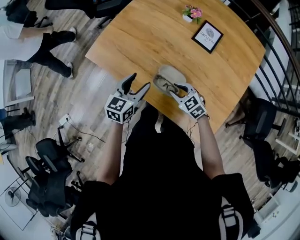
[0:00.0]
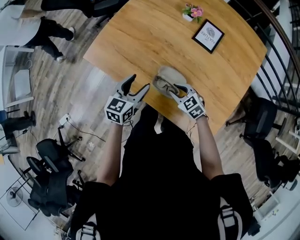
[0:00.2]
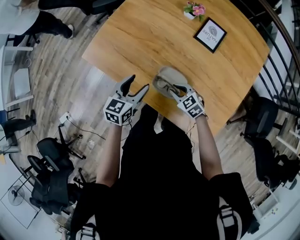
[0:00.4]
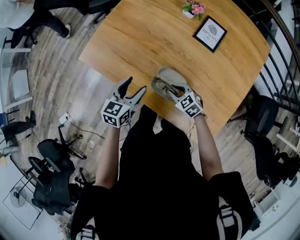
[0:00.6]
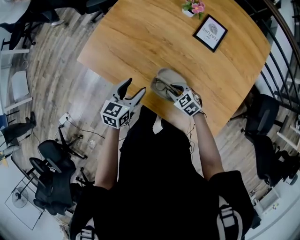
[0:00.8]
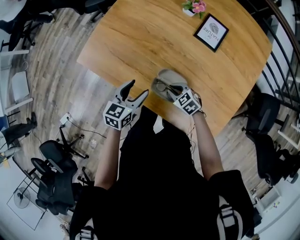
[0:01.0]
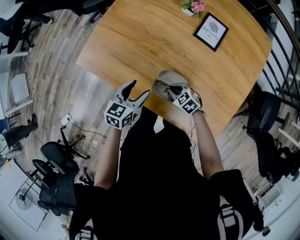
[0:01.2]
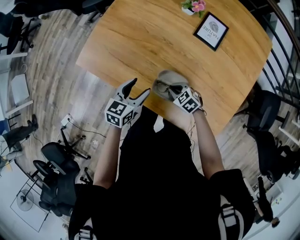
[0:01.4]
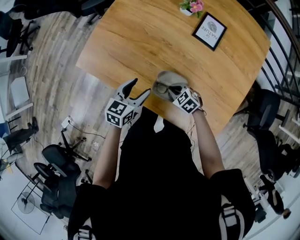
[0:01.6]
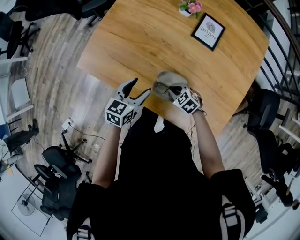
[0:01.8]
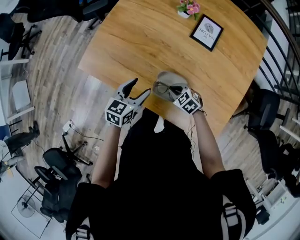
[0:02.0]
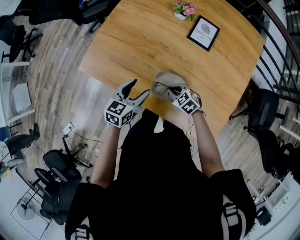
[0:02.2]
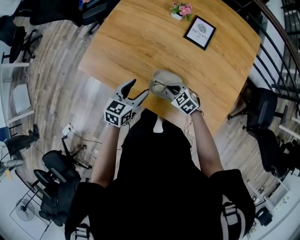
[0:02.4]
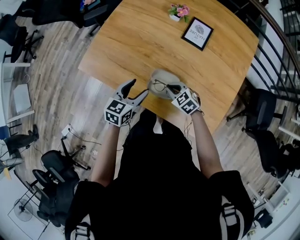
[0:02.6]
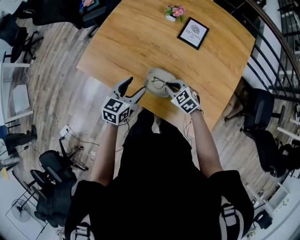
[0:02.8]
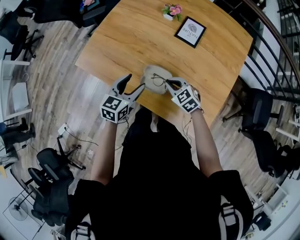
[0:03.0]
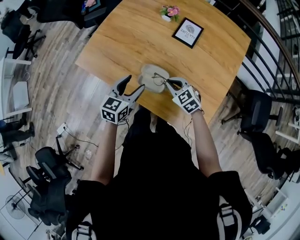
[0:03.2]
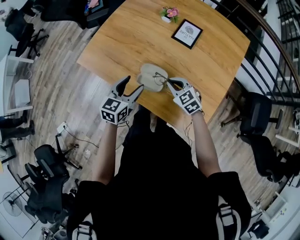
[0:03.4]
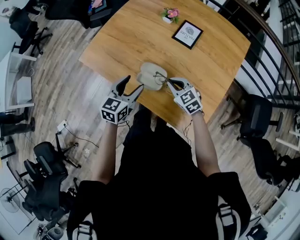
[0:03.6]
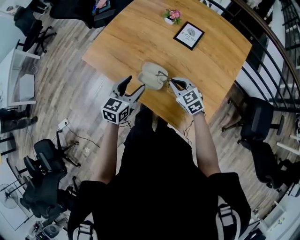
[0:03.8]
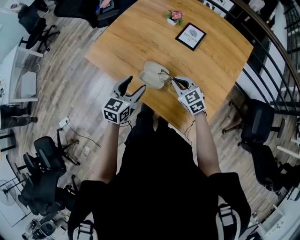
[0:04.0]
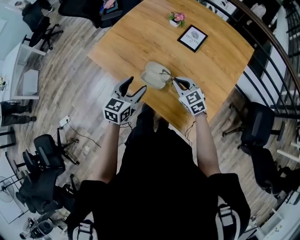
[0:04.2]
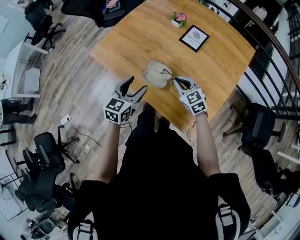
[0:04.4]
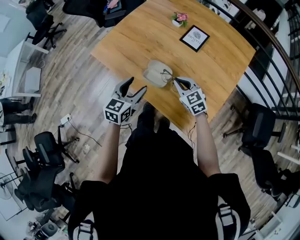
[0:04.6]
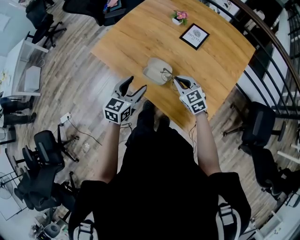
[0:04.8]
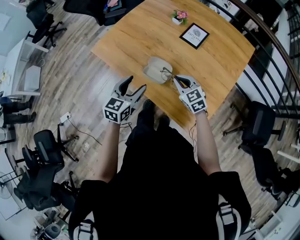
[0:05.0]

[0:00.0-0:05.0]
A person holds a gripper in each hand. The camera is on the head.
0:00.0 to 0:01.6: Both grippers travel together downward, about 10 cm.
0:01.6 to 0:03.4: The left gripper travels upward, backward and to the right by roughly 15 cm, while the right gripper goes some 15 cm upward and to the right, and swivels some 20 degrees.
0:03.4 to 0:05.0: The right gripper shifts by roughly 5 cm, while the left gripper moves backward, roughly 10 cm.

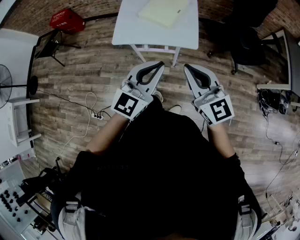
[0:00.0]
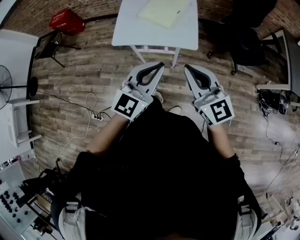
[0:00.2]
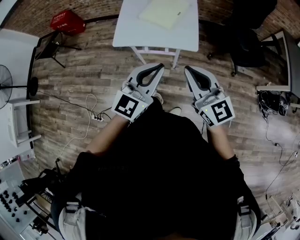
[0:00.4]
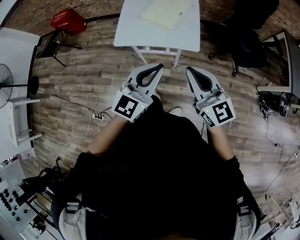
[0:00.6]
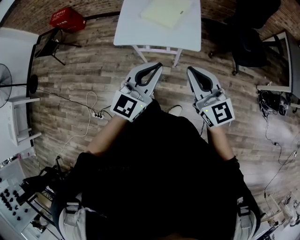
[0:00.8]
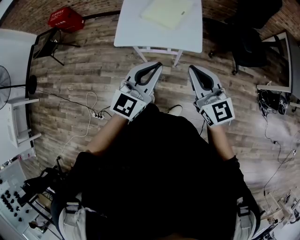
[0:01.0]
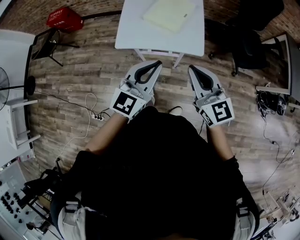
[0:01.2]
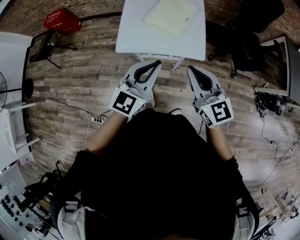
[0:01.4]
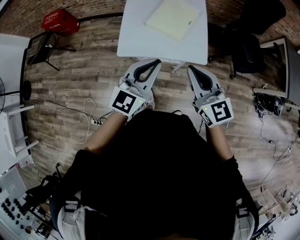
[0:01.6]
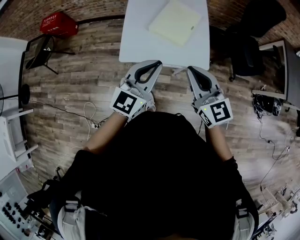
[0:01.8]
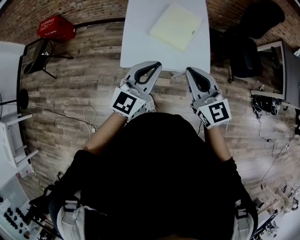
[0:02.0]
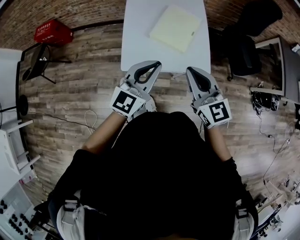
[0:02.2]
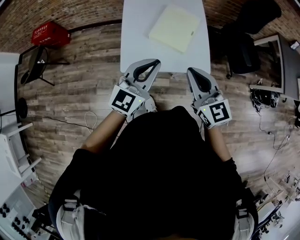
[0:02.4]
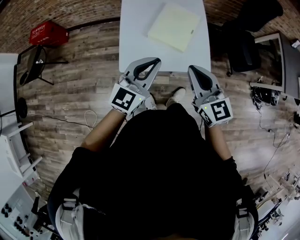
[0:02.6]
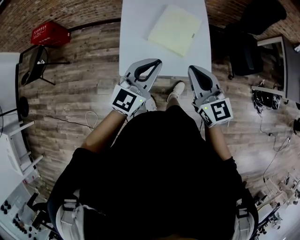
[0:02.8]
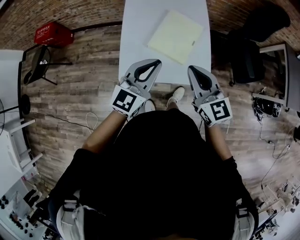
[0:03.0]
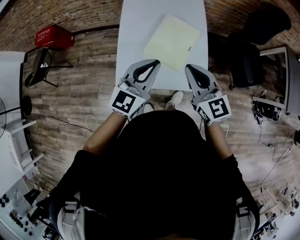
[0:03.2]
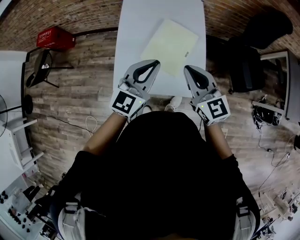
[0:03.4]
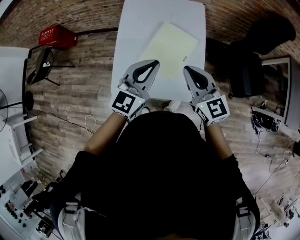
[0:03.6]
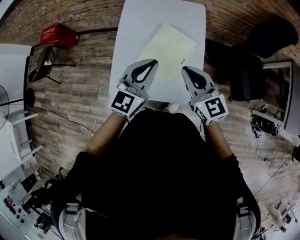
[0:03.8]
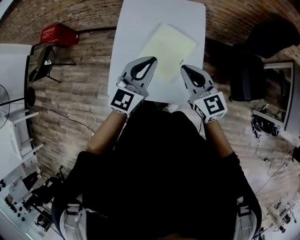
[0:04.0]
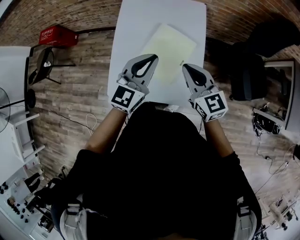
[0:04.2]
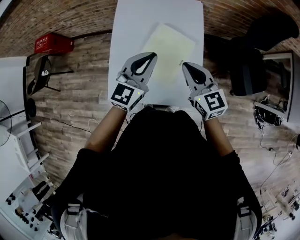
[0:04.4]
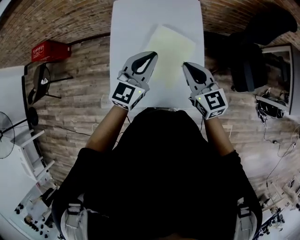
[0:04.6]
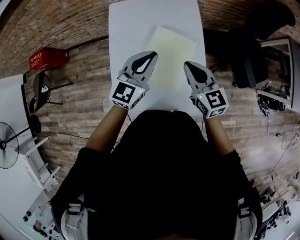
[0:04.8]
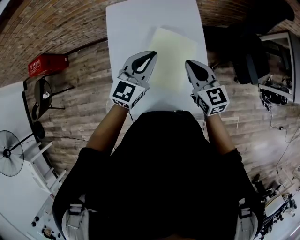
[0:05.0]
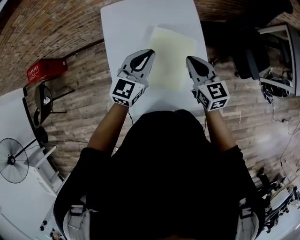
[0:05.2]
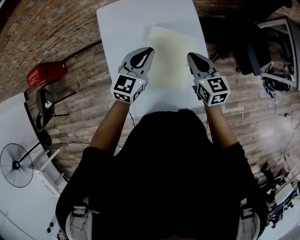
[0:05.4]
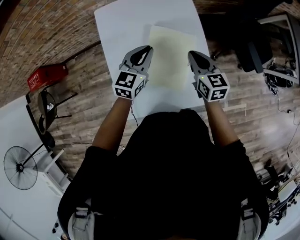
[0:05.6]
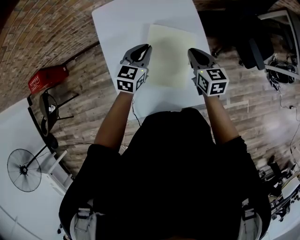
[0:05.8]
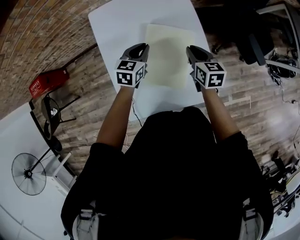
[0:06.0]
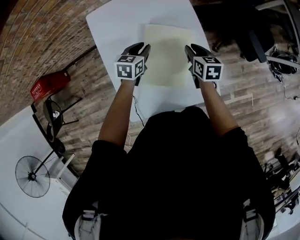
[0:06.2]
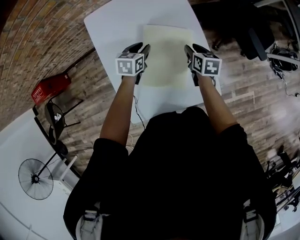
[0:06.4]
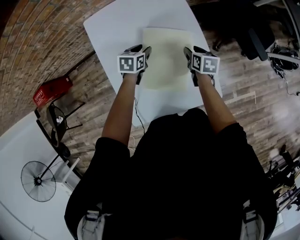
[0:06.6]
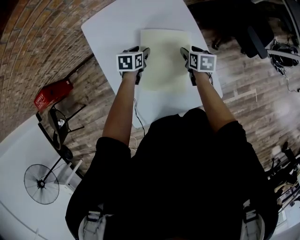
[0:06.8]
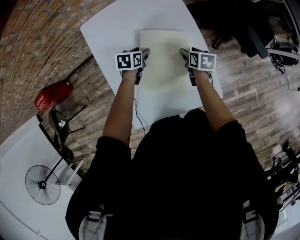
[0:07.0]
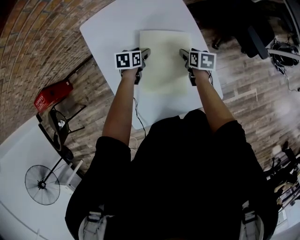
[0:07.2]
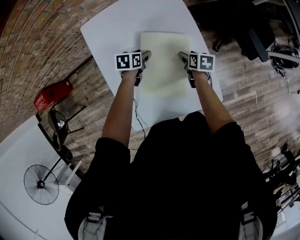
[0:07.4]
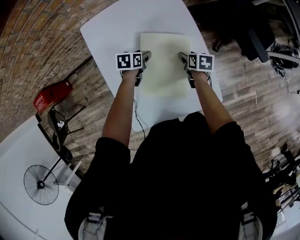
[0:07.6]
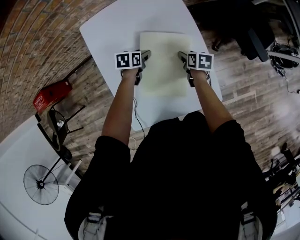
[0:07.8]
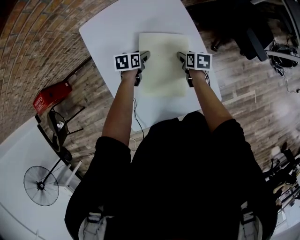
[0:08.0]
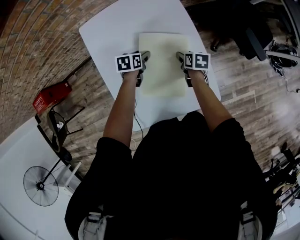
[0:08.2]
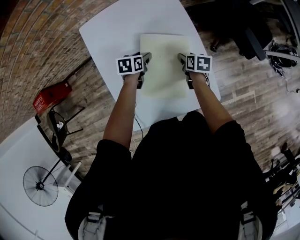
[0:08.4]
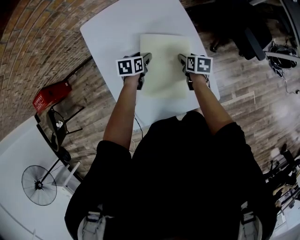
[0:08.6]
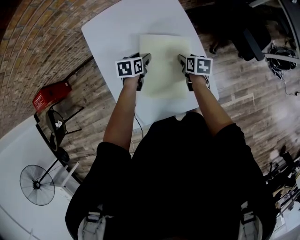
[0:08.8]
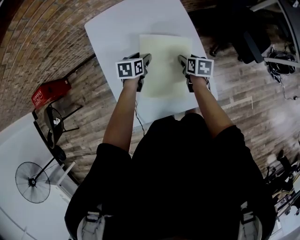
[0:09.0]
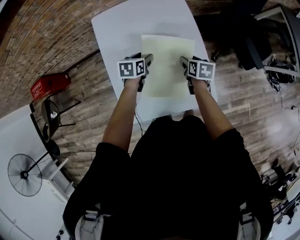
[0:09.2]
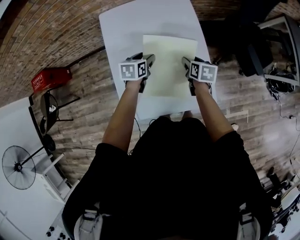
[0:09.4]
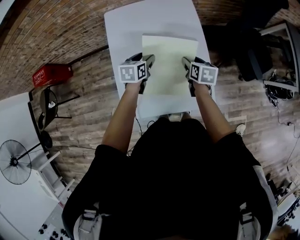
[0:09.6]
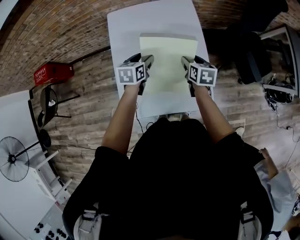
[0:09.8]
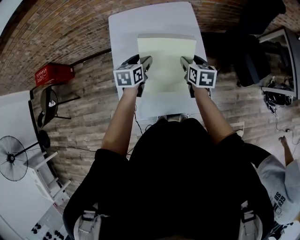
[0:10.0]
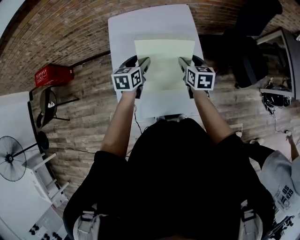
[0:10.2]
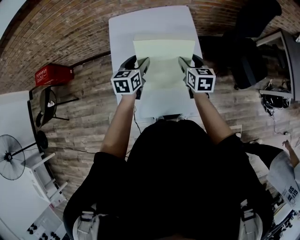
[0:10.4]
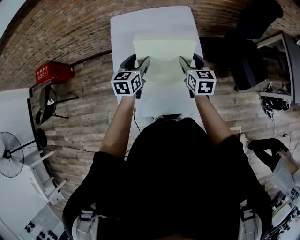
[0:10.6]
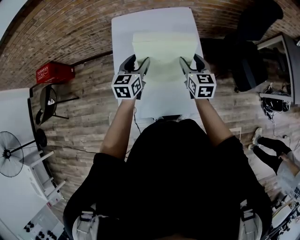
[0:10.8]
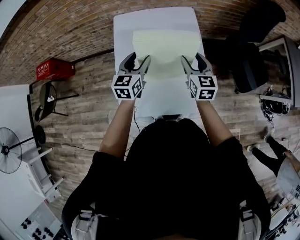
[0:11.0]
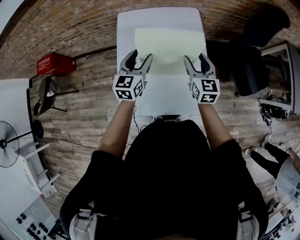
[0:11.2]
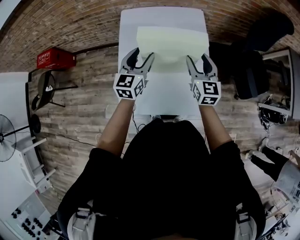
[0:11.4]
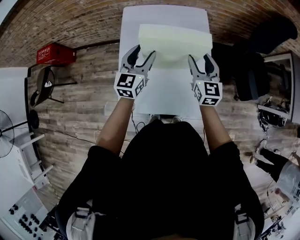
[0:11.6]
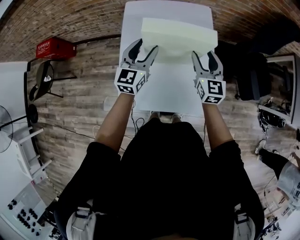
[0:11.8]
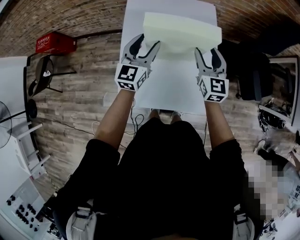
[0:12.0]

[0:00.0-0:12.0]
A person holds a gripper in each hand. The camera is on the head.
0:00.0 to 0:01.6: Both grippers travel together forward and to the left, some 15 cm.
0:01.6 to 0:03.0: Both grippers move forward, some 15 cm.
0:03.0 to 0:04.4: The left gripper heads forward, covering roughly 20 cm. The right gripper is displaced forward and to the right by approximately 20 cm.
0:04.4 to 0:06.0: Both grippers move downward and forward, about 20 cm. The right gripper changes its angle by some 40 degrees. The left gripper rotates roughly 30 degrees.
0:06.0 to 0:07.6: Both grippers move downward, roughly 15 cm. The left gripper rotates about 30 degrees, and opens its fingers, while the right gripper turns by approximately 30 degrees, and opens.
0:07.6 to 0:09.0: Both grippers travel together upward, some 5 cm.
0:09.0 to 0:10.4: The right gripper shifts roughly 15 cm upward, and changes its angle by about 30 degrees. Meanwhile the left gripper is displaced upward and backward by roughly 15 cm, and rotates roughly 30 degrees.
0:10.4 to 0:12.0: The left gripper goes approximately 5 cm upward, and changes its angle by some 30 degrees. Meanwhile the right gripper ends up some 5 cm from where it was, and swivels approximately 30 degrees.

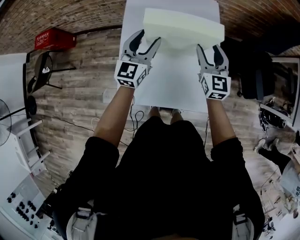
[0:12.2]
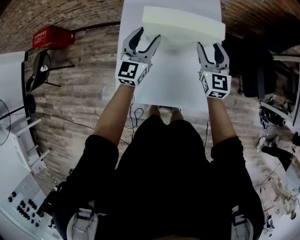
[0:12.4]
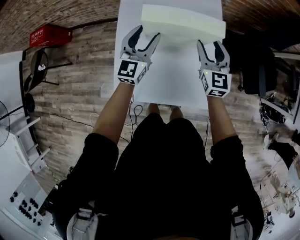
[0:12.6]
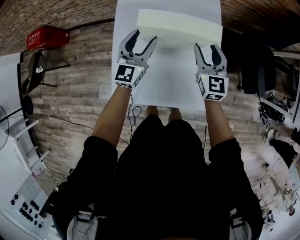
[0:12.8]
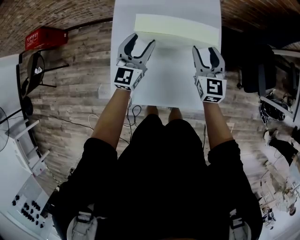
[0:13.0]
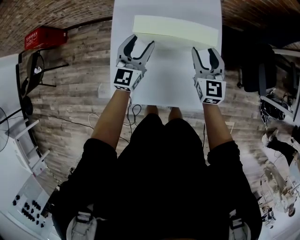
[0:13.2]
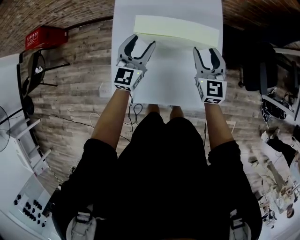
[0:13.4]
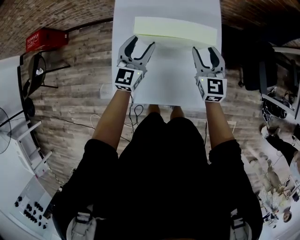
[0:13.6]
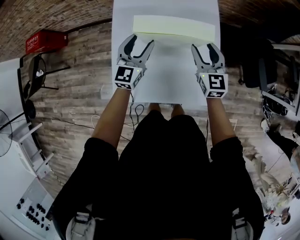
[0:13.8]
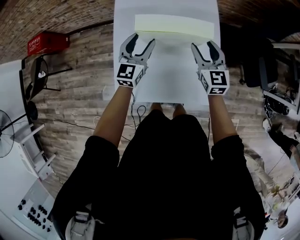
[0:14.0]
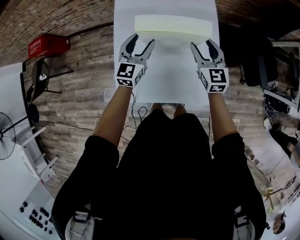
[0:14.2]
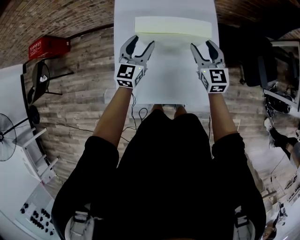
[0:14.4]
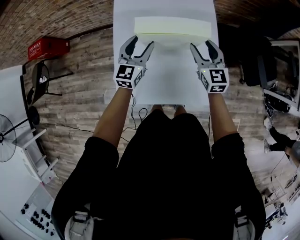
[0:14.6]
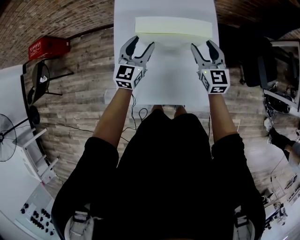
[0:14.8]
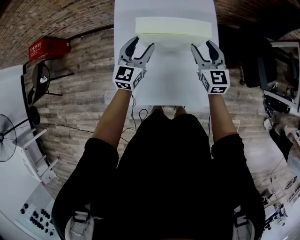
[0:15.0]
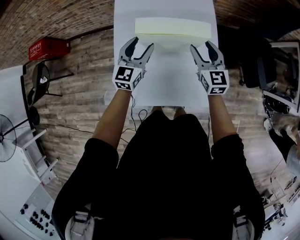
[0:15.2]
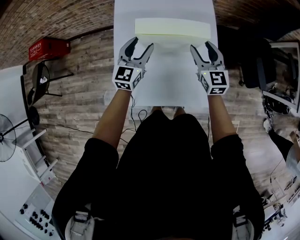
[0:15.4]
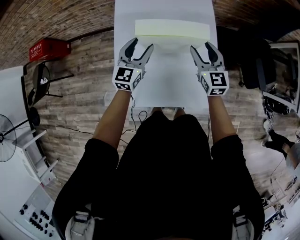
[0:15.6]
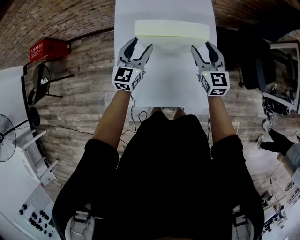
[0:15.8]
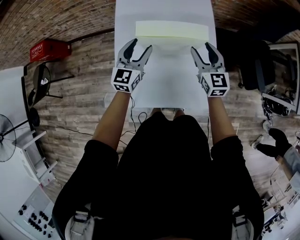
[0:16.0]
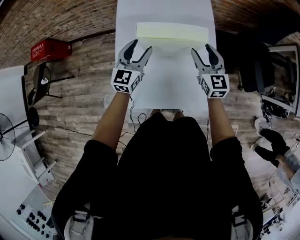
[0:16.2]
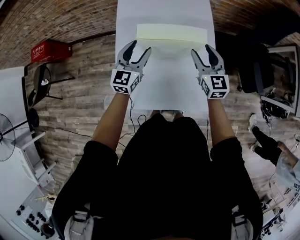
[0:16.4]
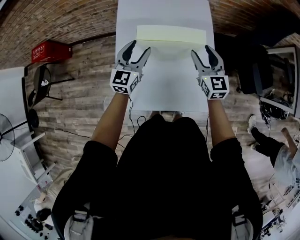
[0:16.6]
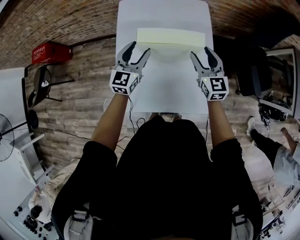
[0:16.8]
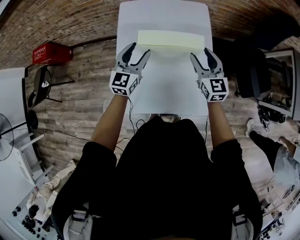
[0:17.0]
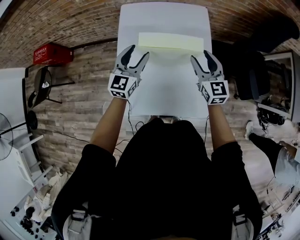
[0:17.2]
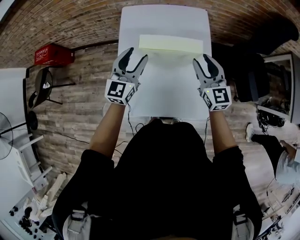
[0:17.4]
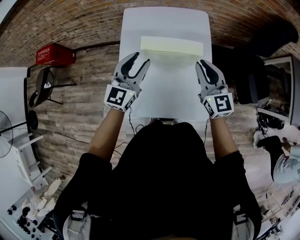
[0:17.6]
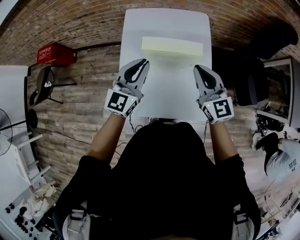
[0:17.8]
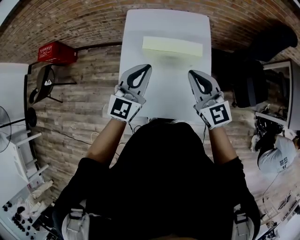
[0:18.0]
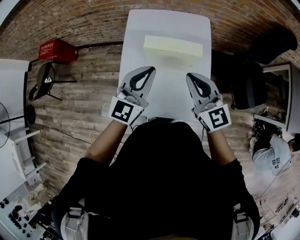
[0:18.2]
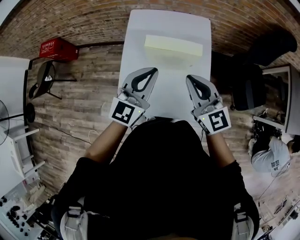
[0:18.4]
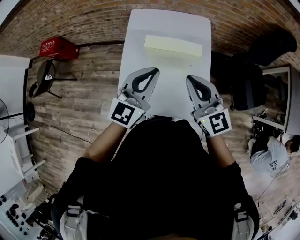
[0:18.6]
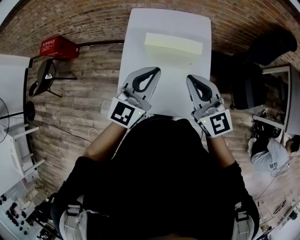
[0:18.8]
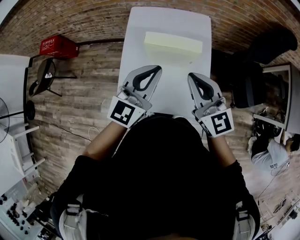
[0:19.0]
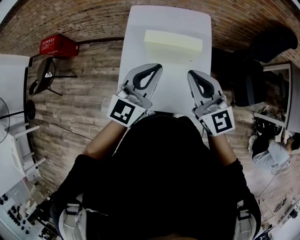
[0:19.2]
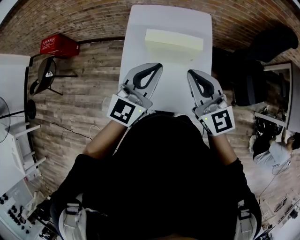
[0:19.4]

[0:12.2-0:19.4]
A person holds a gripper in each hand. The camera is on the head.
0:12.2 to 0:13.6: Both grippers move downward, about 5 cm.
0:13.6 to 0:16.6: The grippers move only a little.
0:16.6 to 0:18.0: The left gripper is displaced upward and backward by roughly 15 cm, and closes up. Meanwhile the right gripper shifts approximately 15 cm upward, backward and to the left, and closes up.
0:18.0 to 0:19.4: The right gripper moves upward, about 5 cm. The left gripper heads upward and backward, covering approximately 10 cm.
